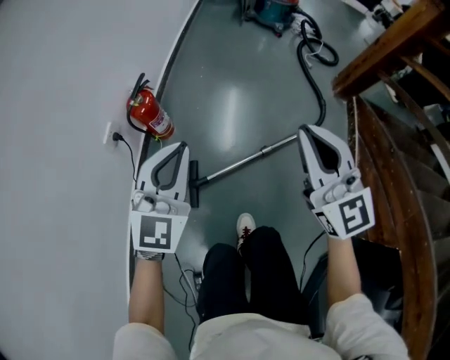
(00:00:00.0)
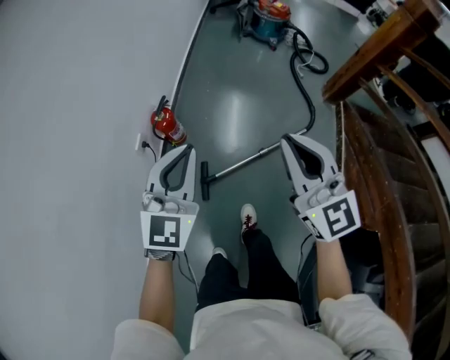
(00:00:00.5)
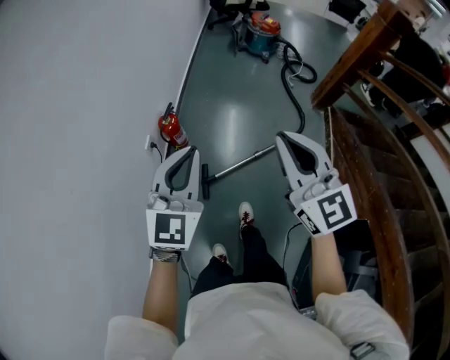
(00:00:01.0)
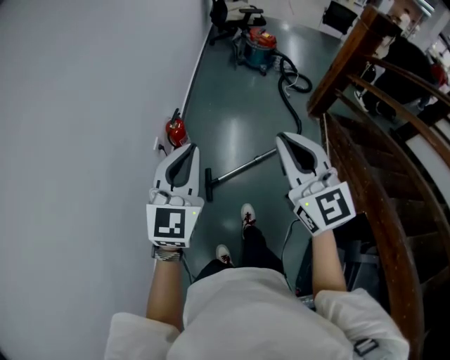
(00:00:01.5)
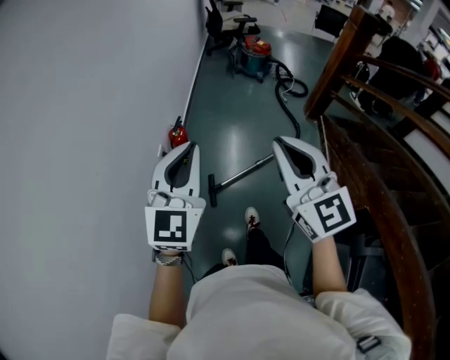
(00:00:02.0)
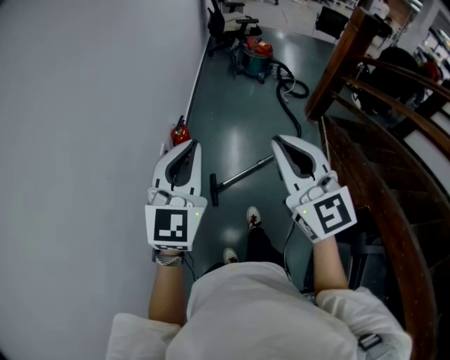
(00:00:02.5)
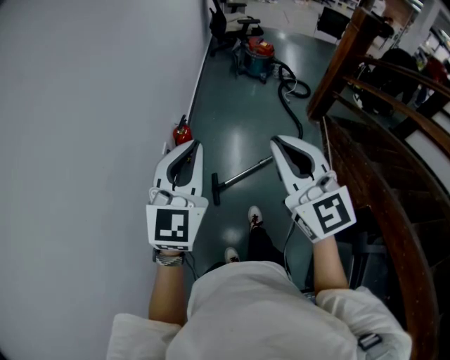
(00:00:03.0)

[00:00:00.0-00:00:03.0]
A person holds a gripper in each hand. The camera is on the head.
00:00:00.0 to 00:00:01.5: Both grippers move upward and backward, about 40 cm.
00:00:01.5 to 00:00:03.0: The right gripper moves backward and to the left, roughly 10 cm. The left gripper moves backward and upward, approximately 10 cm.

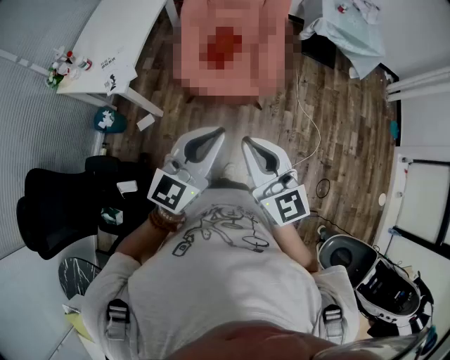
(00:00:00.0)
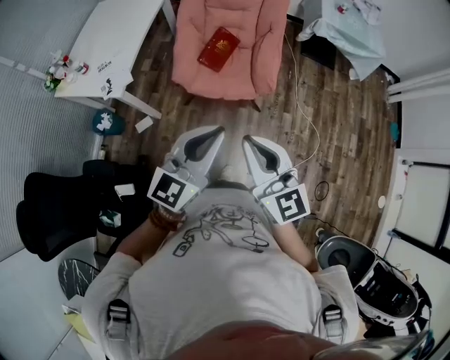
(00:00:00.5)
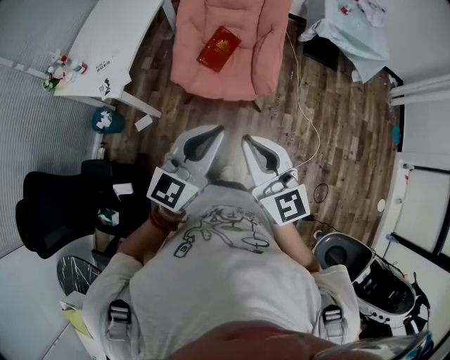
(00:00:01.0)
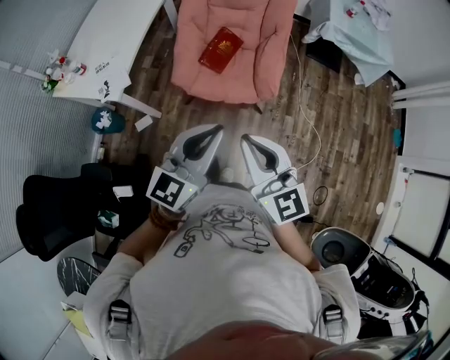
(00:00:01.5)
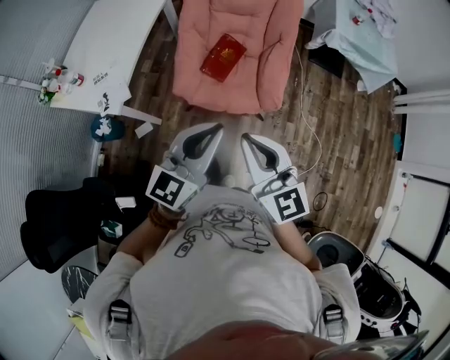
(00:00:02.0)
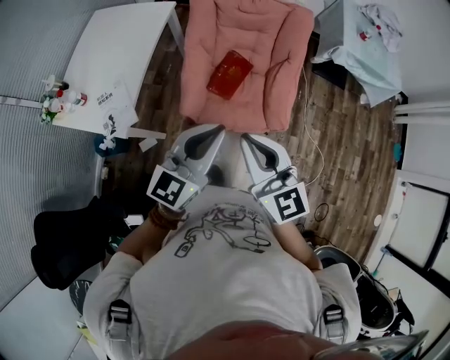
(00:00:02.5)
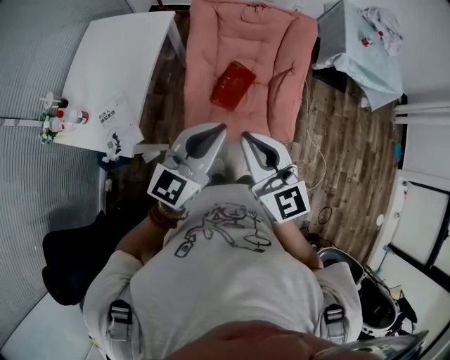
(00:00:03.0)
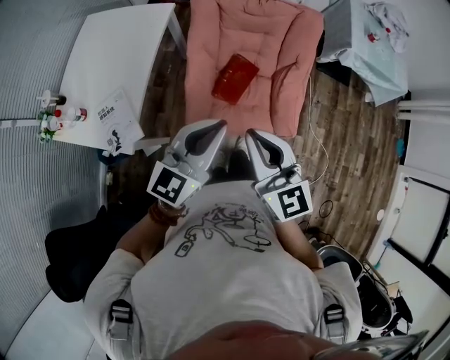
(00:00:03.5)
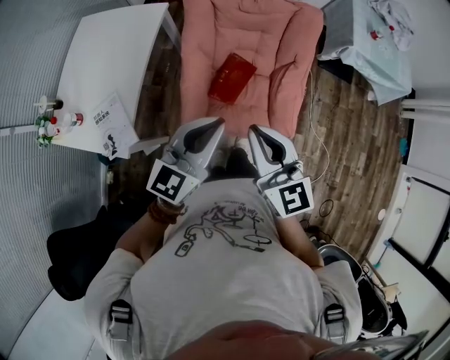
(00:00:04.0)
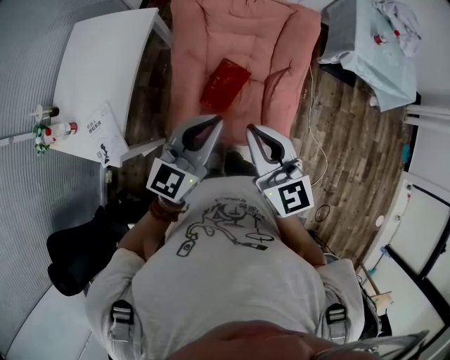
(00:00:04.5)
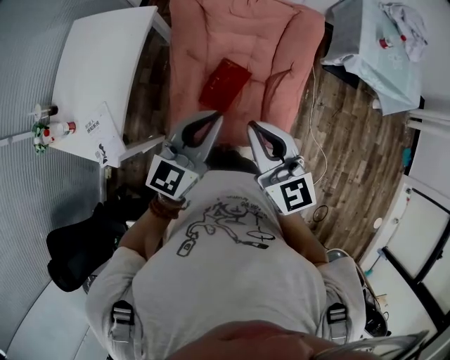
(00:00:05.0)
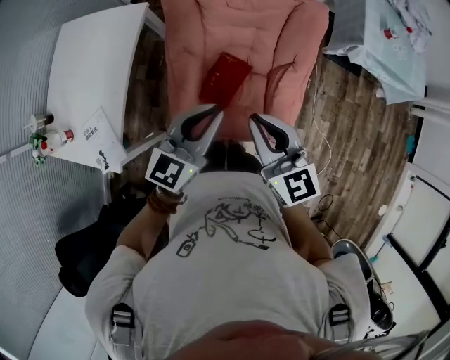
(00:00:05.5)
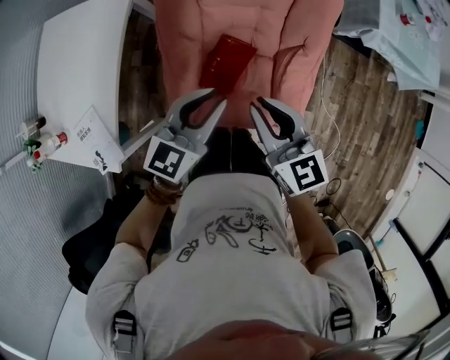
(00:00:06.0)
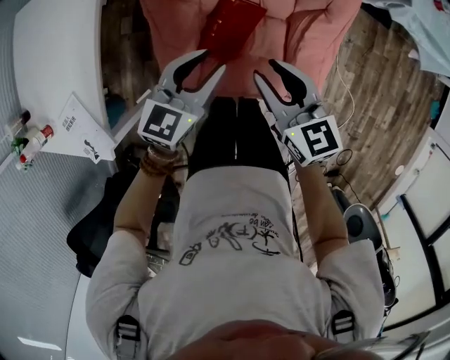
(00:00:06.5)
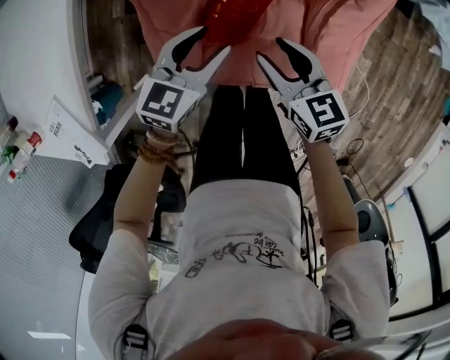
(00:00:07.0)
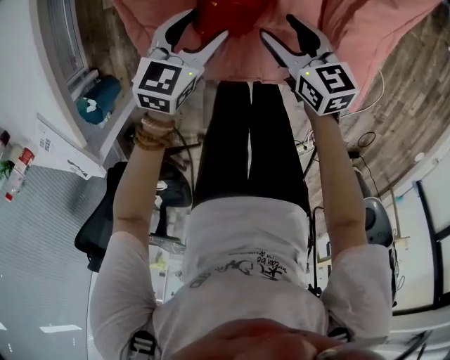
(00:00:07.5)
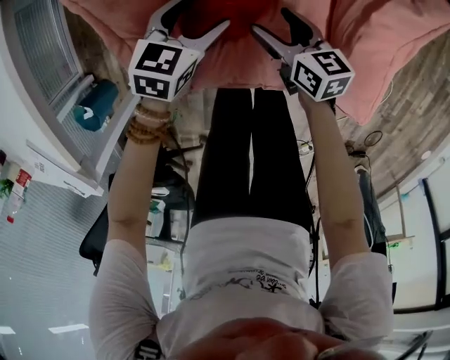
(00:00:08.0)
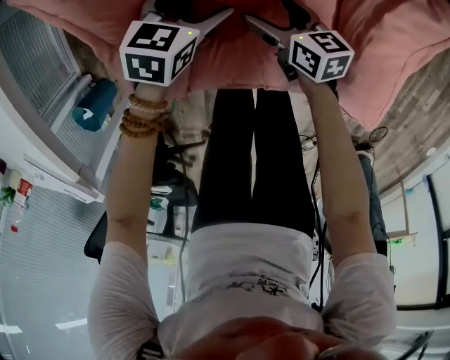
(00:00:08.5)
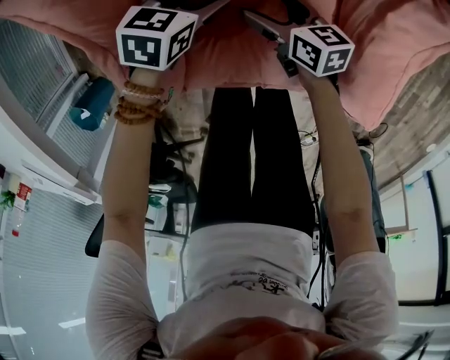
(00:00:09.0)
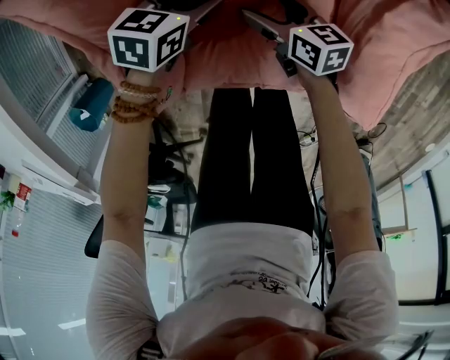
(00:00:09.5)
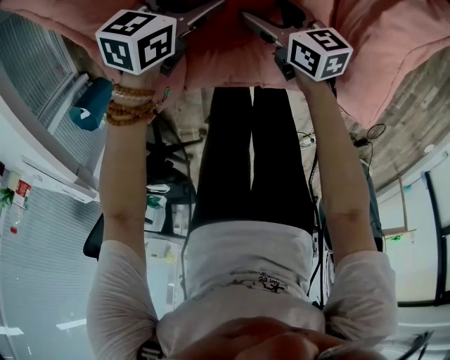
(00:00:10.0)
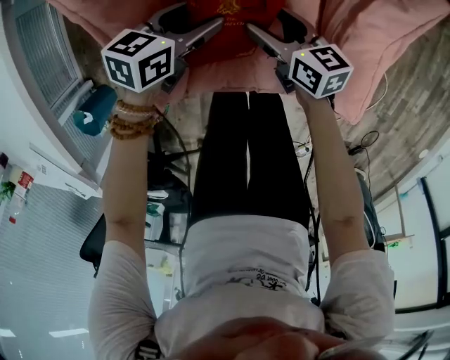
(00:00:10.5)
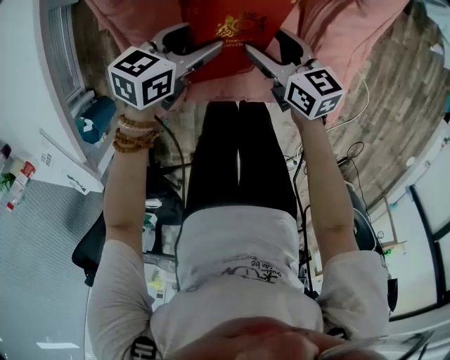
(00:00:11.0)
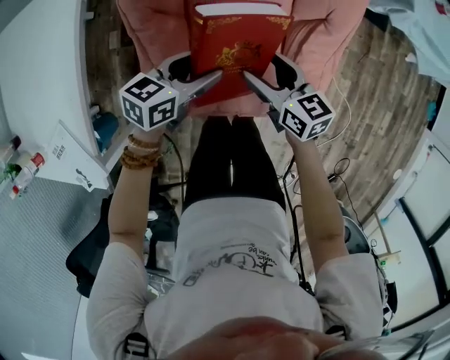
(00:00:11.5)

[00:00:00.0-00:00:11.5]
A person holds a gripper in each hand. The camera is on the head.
00:00:00.0 to 00:00:02.0: Both grippers move forward, approximately 20 cm.
00:00:02.0 to 00:00:04.0: The grippers both shift forward by some 25 cm.
00:00:04.0 to 00:00:06.0: Both grippers move forward and downward, some 25 cm.
00:00:06.0 to 00:00:07.5: Both grippers move downward, roughly 40 cm. The left gripper swivels roughly 20 degrees, and opens its fingers, while the right gripper turns by approximately 30 degrees, and opens its fingers.
00:00:07.5 to 00:00:09.5: The right gripper is displaced downward by roughly 20 cm, while the left gripper goes some 15 cm downward and forward, and opens, then closes once more.
00:00:09.5 to 00:00:11.5: Both grippers move upward, roughly 30 cm.

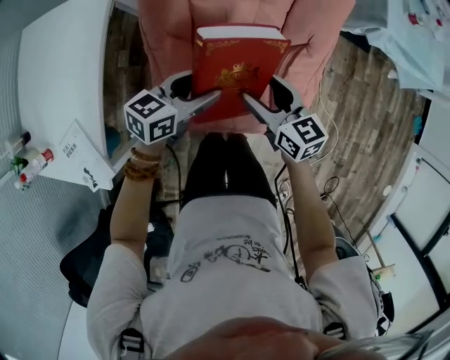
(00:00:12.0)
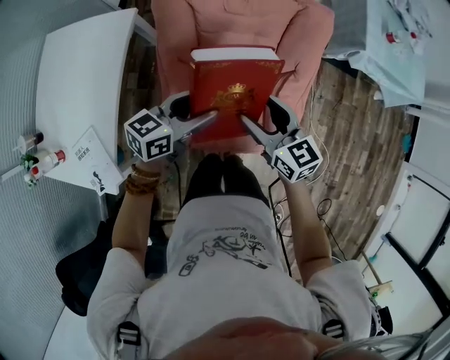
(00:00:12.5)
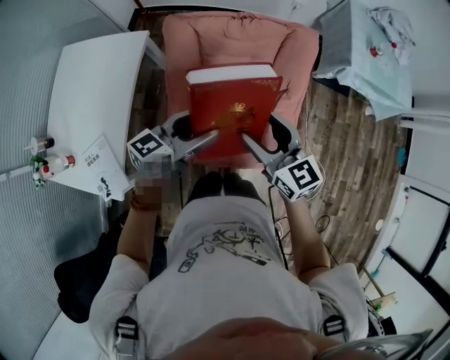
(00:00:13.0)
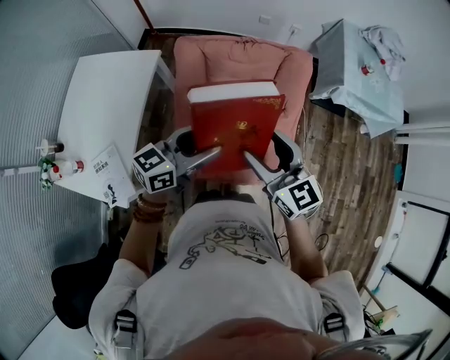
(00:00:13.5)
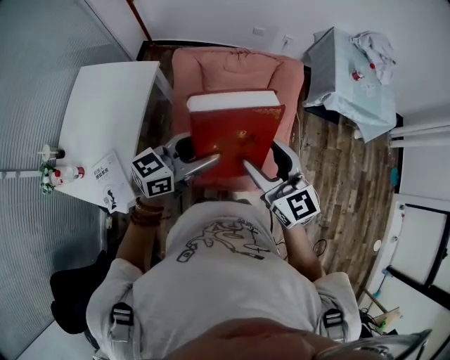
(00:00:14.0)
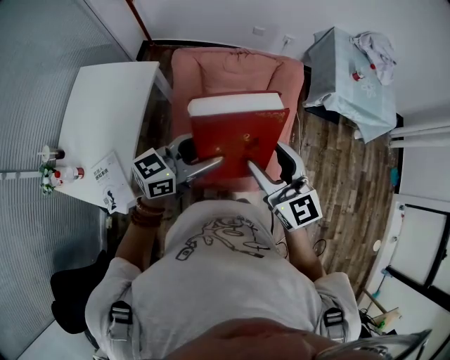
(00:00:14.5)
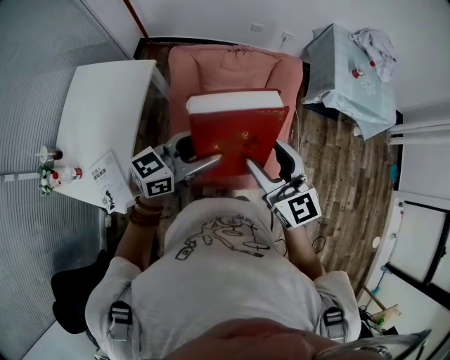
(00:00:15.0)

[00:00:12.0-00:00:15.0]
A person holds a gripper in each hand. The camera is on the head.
00:00:12.0 to 00:00:13.5: The grippers both shift upward by approximately 30 cm. The right gripper rotates approximately 20 degrees.
00:00:13.5 to 00:00:15.0: The right gripper shifts by approximately 5 cm.

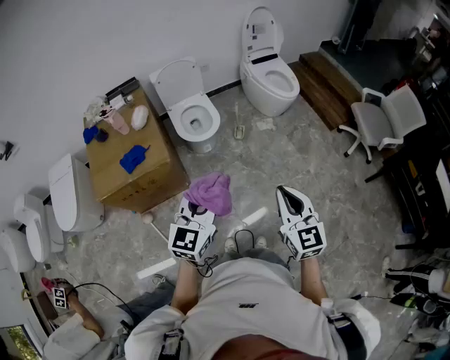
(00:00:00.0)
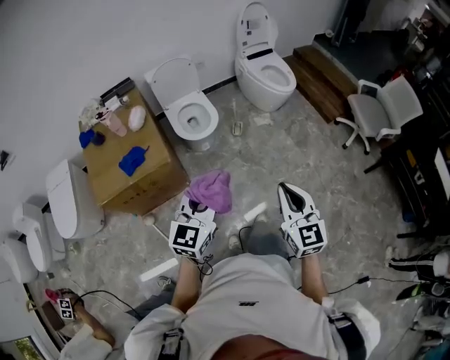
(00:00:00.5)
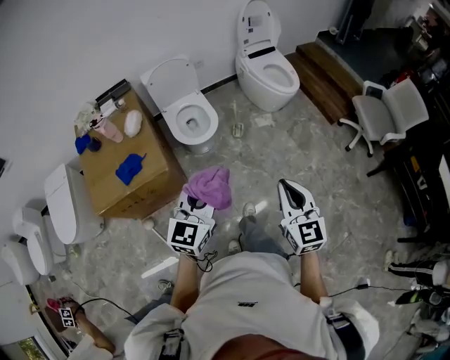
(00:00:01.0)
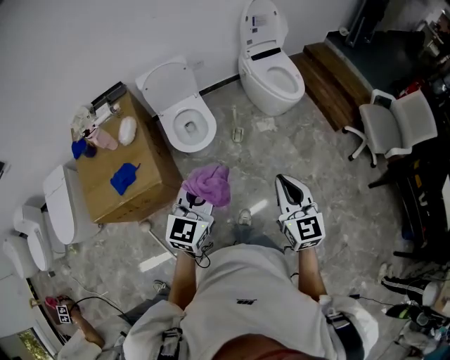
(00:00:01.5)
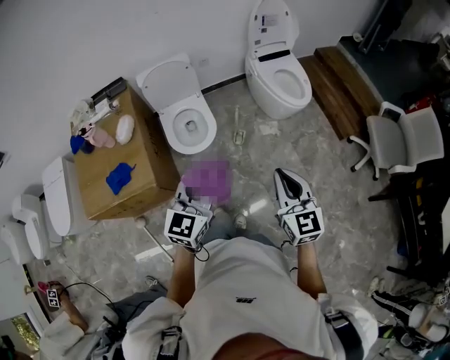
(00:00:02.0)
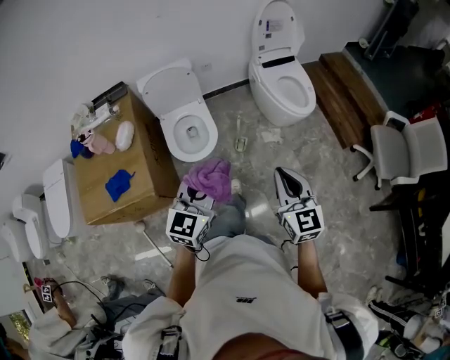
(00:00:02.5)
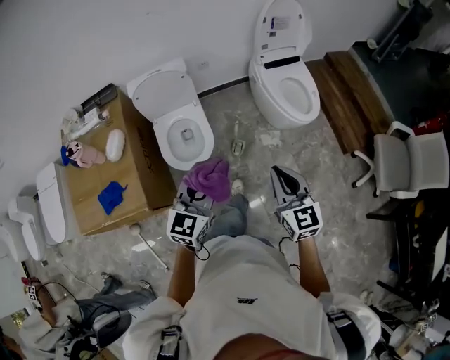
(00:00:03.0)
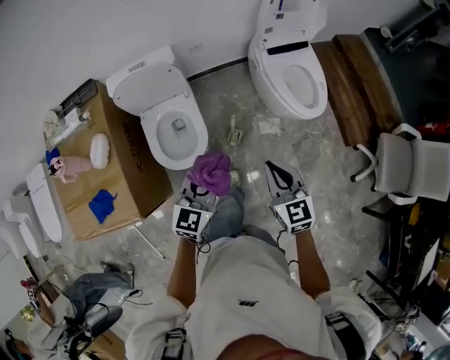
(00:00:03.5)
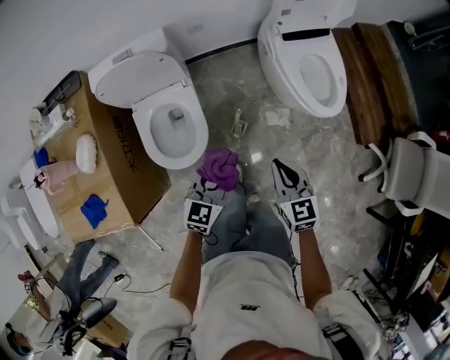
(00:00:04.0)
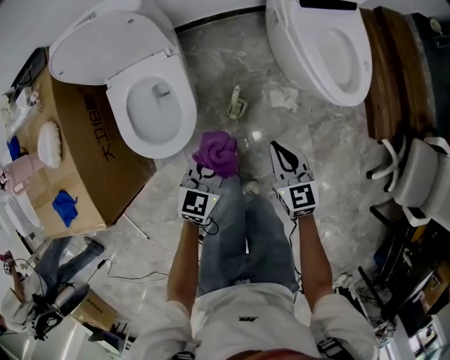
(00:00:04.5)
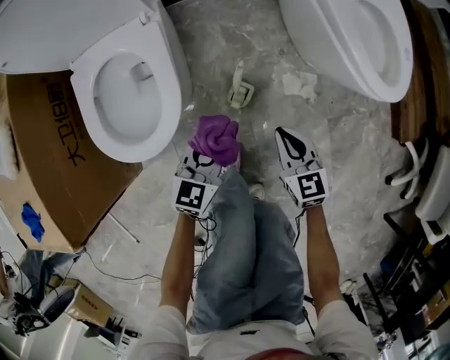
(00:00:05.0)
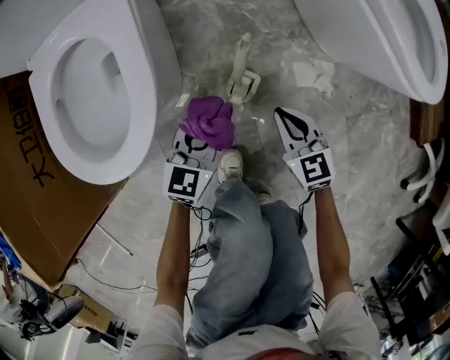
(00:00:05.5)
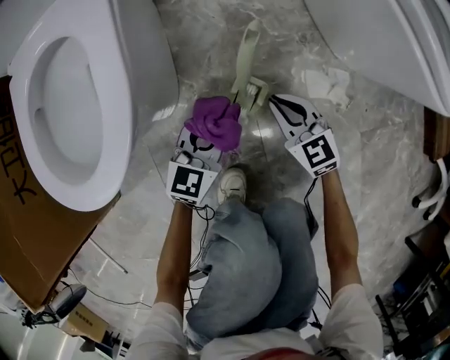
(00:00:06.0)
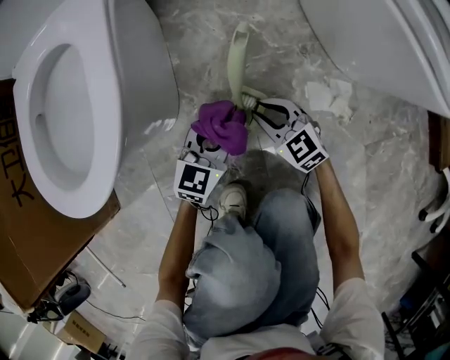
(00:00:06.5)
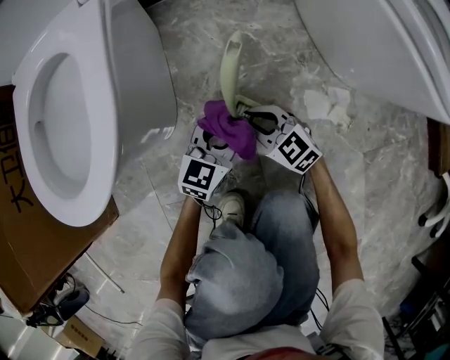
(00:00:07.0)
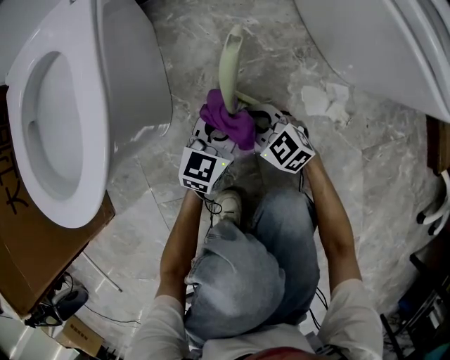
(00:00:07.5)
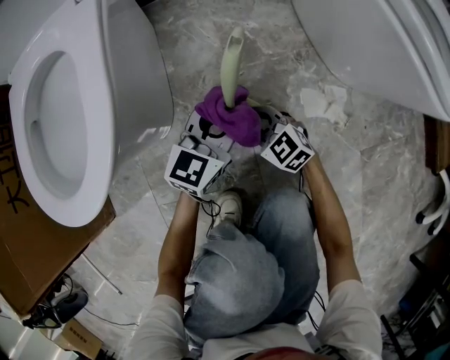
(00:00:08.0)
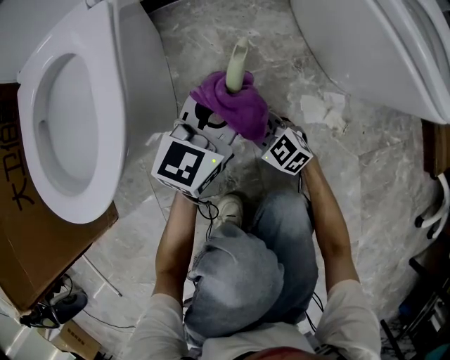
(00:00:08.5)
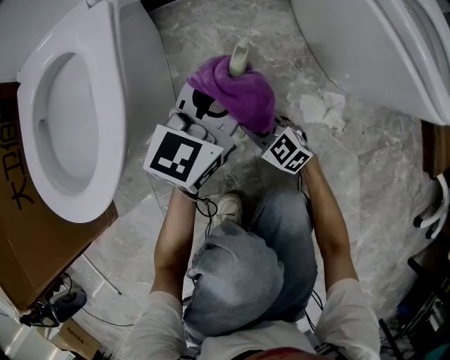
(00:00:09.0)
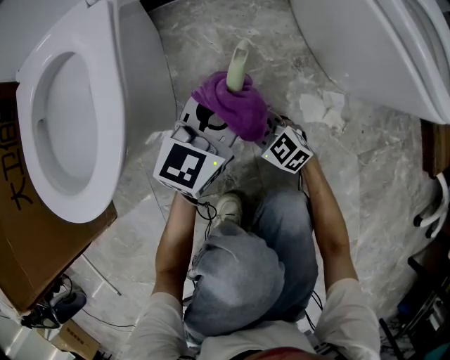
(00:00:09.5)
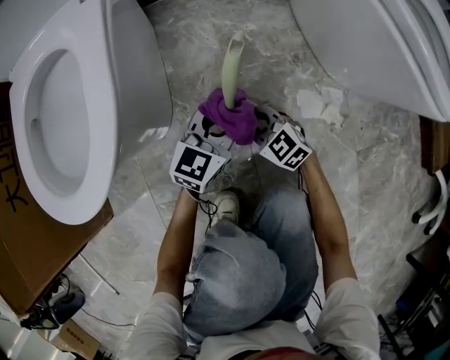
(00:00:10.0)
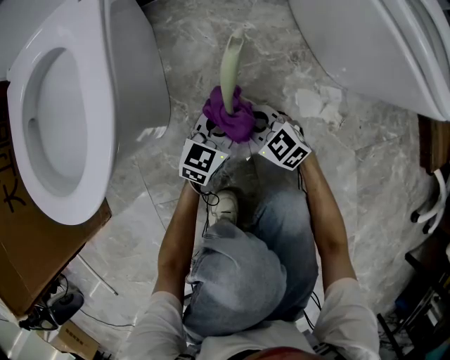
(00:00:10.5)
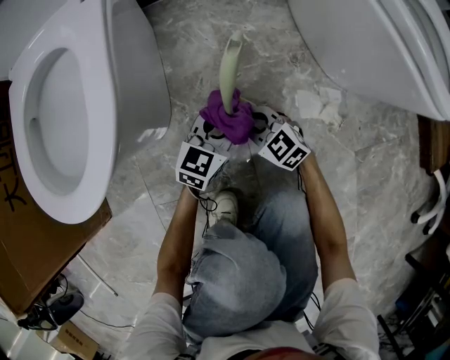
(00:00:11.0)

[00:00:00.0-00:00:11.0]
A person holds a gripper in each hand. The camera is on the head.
00:00:00.0 to 00:00:02.0: Both grippers move forward, approximately 30 cm.
00:00:02.0 to 00:00:03.5: Both grippers travel together forward and downward, roughly 35 cm.
00:00:03.5 to 00:00:05.5: The two grippers go approximately 70 cm downward.
00:00:05.5 to 00:00:07.5: The right gripper heads downward, covering roughly 20 cm, and swivels some 30 degrees. The left gripper travels downward and to the right by approximately 15 cm.
00:00:07.5 to 00:00:09.0: The left gripper moves upward, about 20 cm.
00:00:09.0 to 00:00:11.0: The left gripper is displaced downward by approximately 20 cm.
